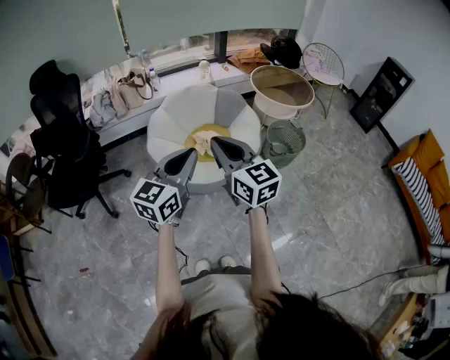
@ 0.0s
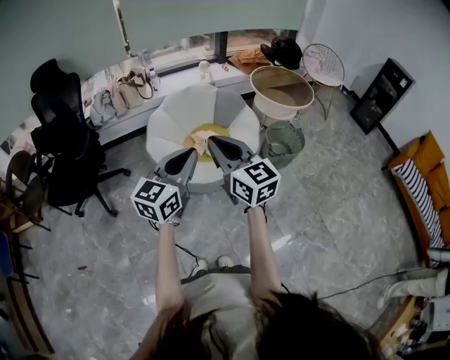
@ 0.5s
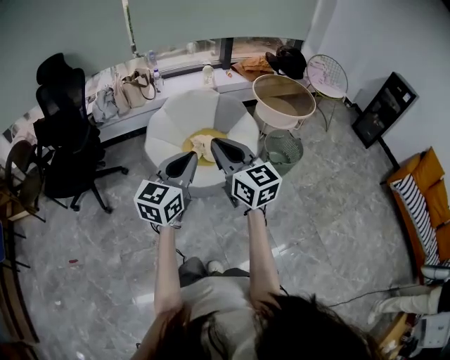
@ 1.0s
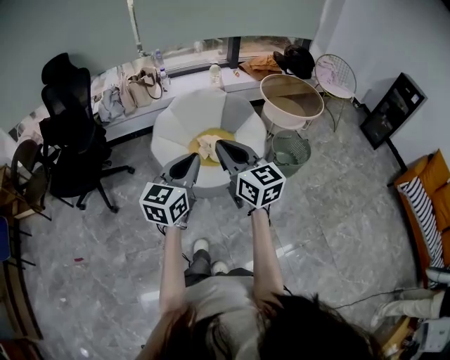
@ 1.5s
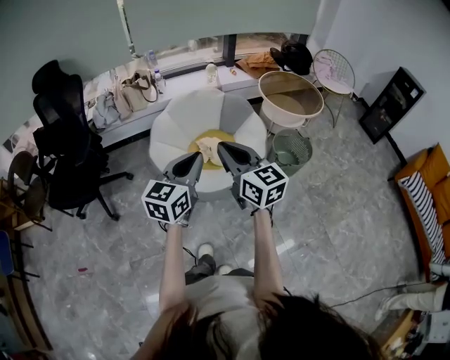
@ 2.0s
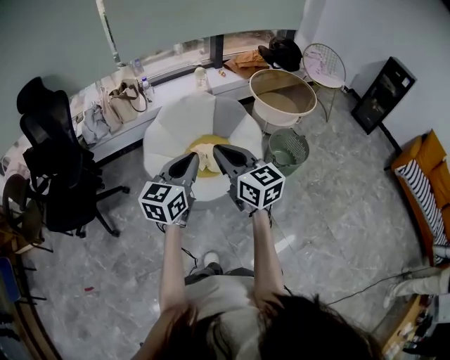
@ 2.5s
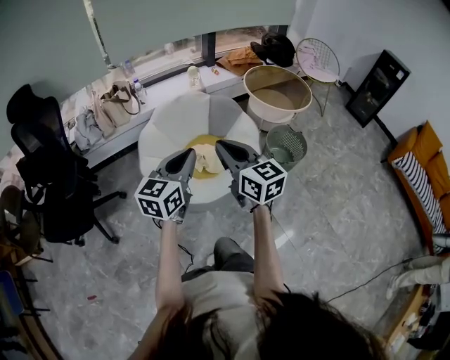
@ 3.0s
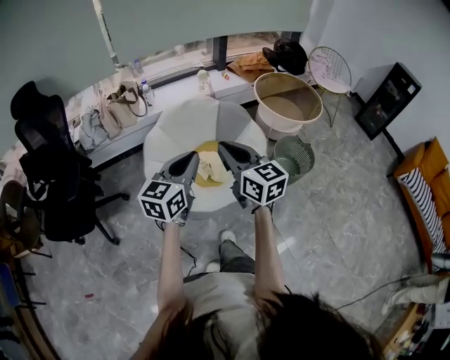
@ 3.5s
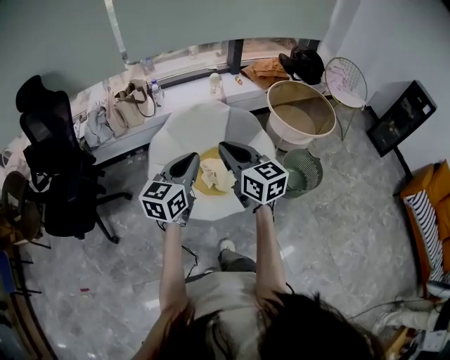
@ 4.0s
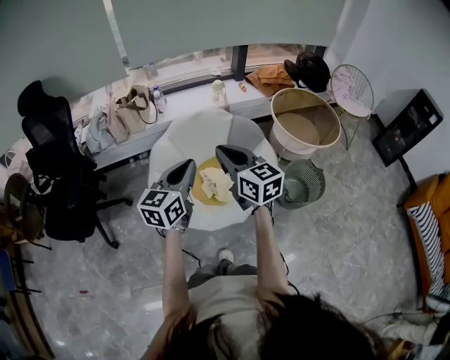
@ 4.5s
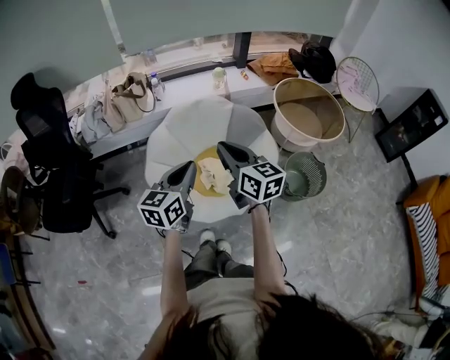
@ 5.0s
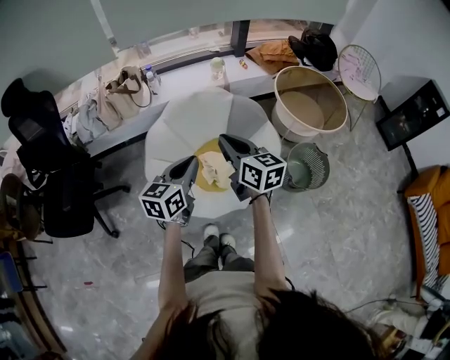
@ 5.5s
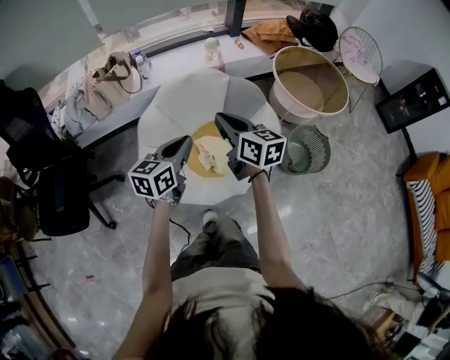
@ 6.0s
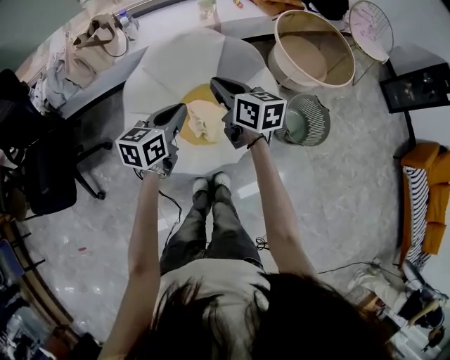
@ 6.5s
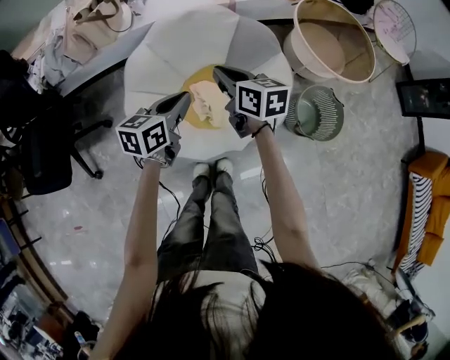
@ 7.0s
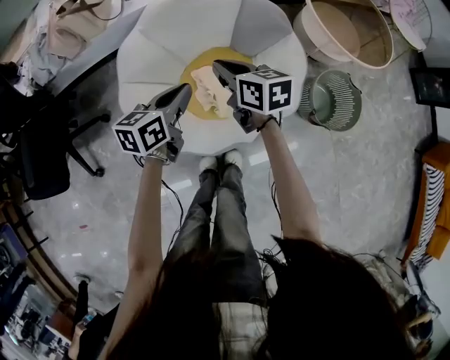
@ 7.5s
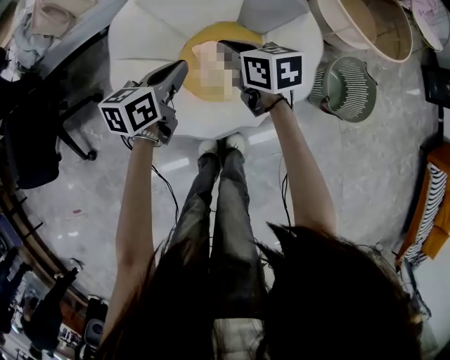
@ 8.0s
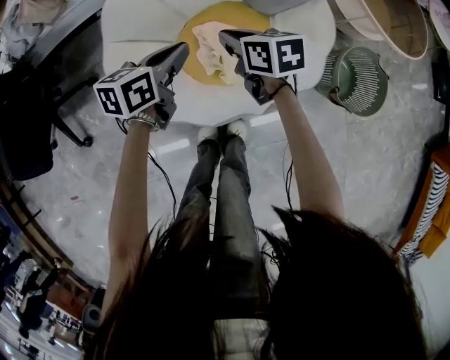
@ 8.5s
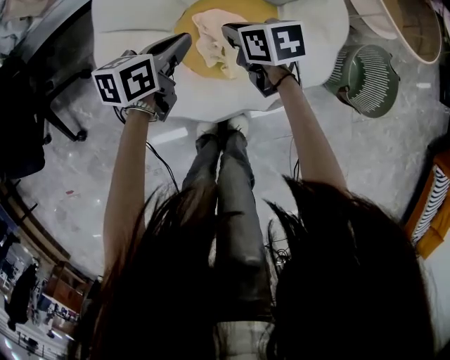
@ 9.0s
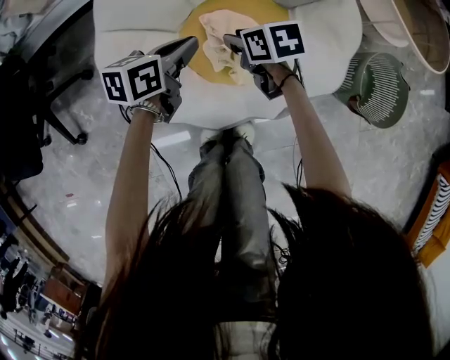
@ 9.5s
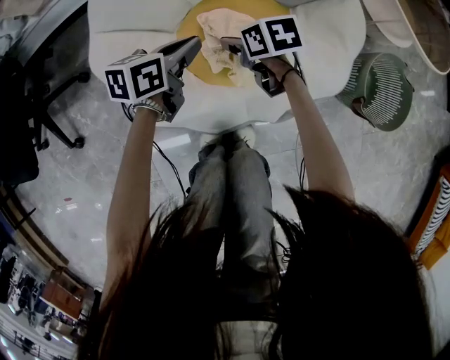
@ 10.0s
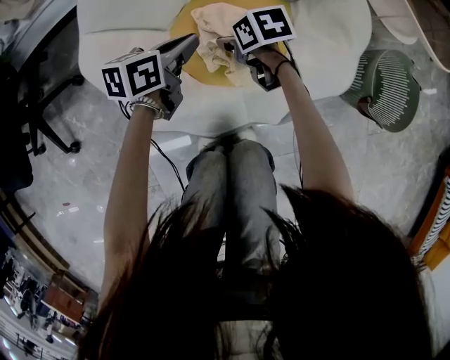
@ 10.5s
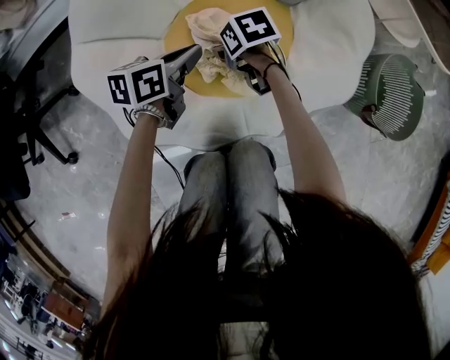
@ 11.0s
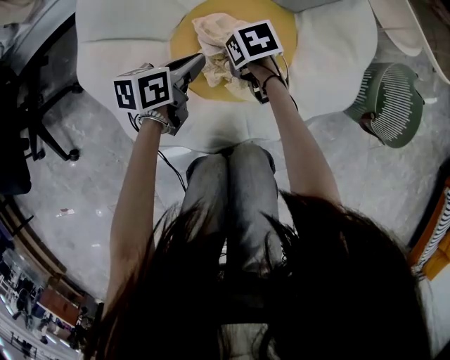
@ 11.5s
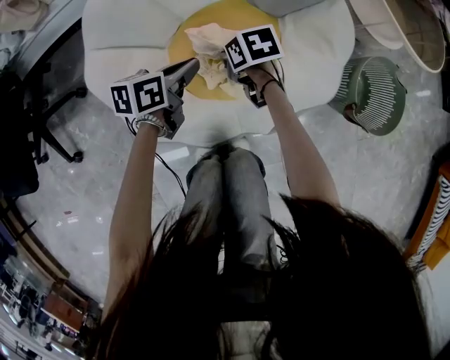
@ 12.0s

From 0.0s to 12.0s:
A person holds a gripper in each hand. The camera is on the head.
From 0.0s to 2.0s: Both grippers move forward, roughly 5 cm.
From 2.0s to 4.0s: Both grippers move forward, approximately 25 cm.
From 4.0s to 6.0s: Both grippers travel together forward and downward, some 20 cm.
From 6.0s to 8.0s: The grippers both shift downward by some 25 cm. The right gripper swivels roughly 30 degrees.
From 8.0s to 10.0s: Both grippers travel together downward, approximately 20 cm. The right gripper swivels roughly 20 degrees, and opens its fingers.
From 10.0s to 12.0s: The left gripper moves roughly 10 cm downward and comes back, while the right gripper travels downward and back again, approximately 10 cm each way, and closes.

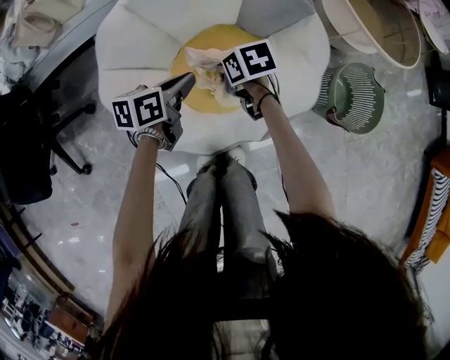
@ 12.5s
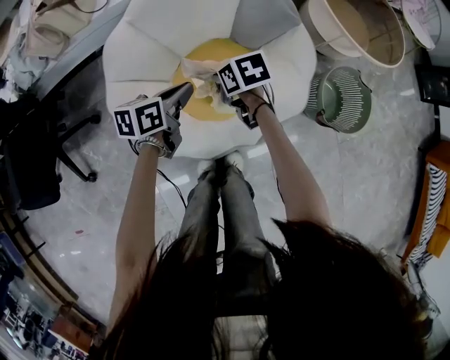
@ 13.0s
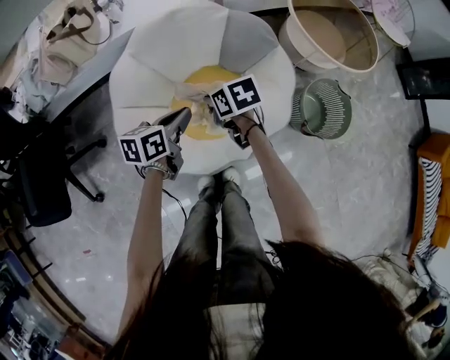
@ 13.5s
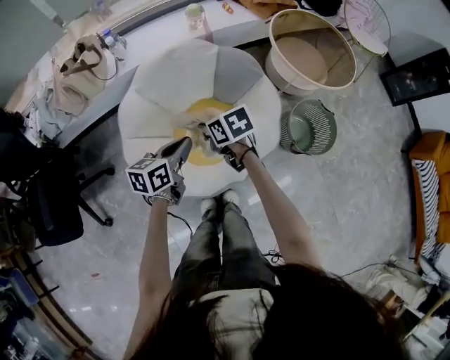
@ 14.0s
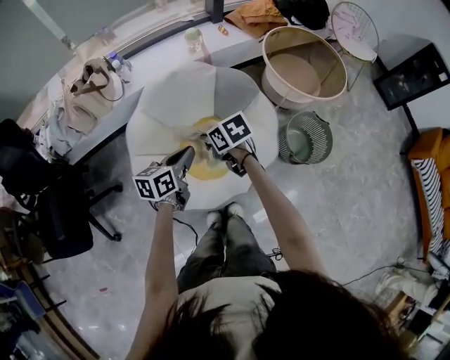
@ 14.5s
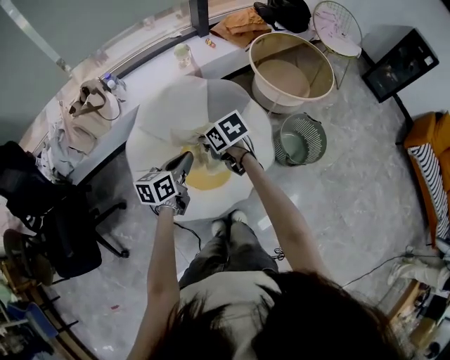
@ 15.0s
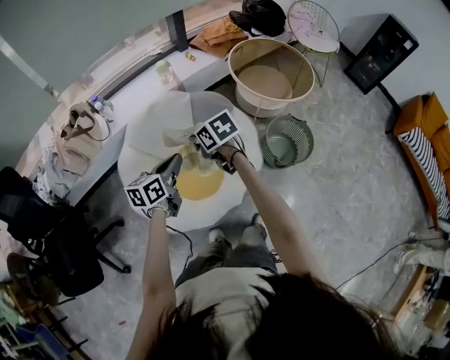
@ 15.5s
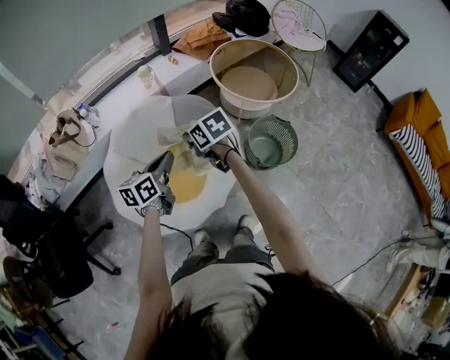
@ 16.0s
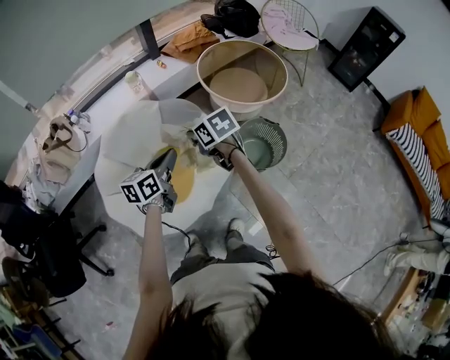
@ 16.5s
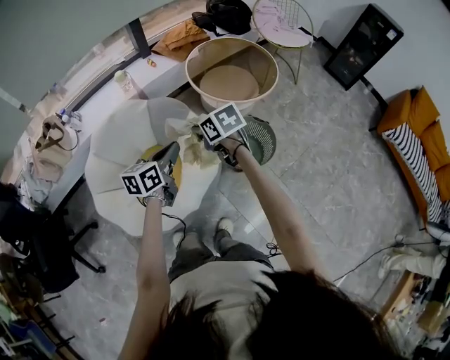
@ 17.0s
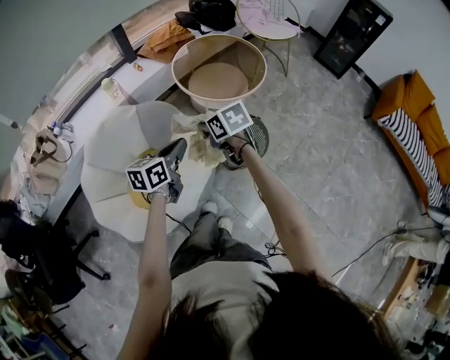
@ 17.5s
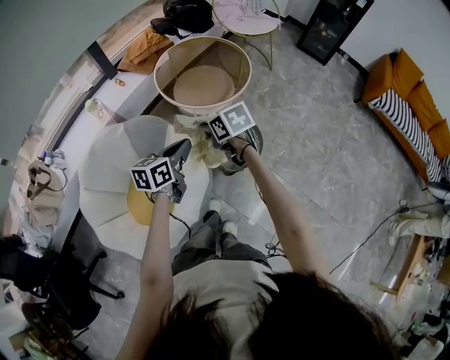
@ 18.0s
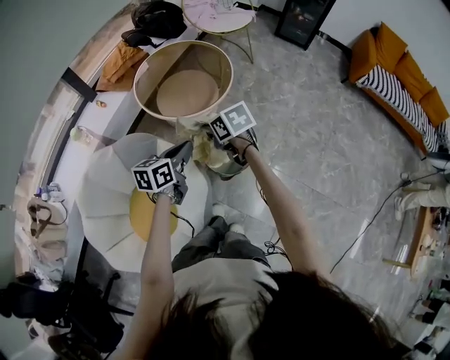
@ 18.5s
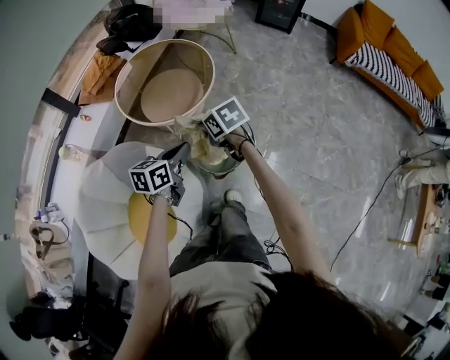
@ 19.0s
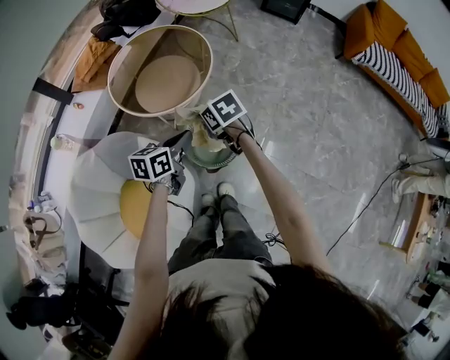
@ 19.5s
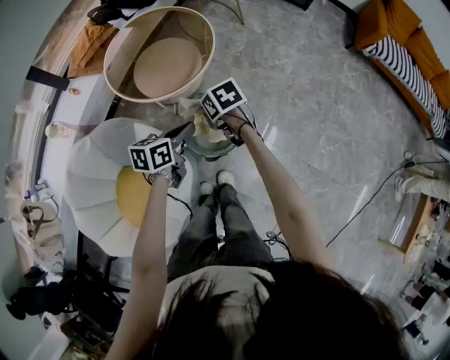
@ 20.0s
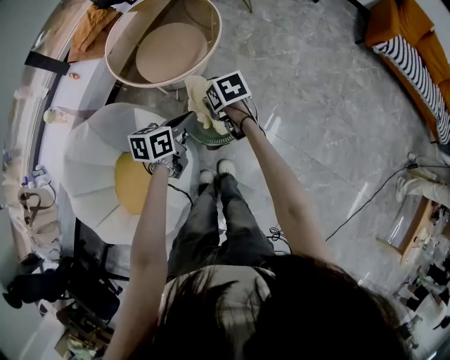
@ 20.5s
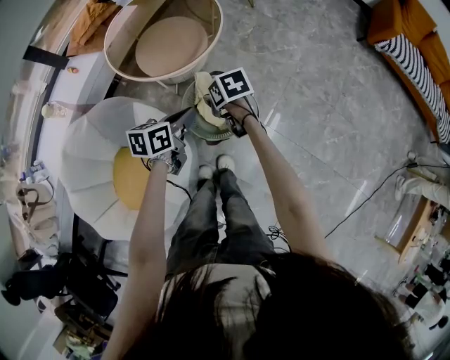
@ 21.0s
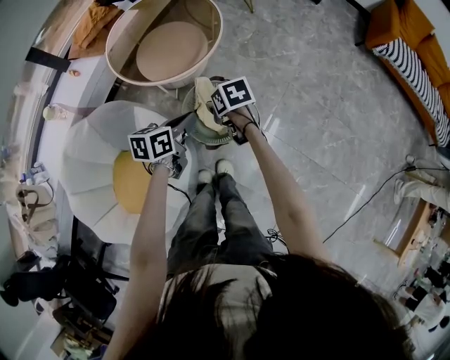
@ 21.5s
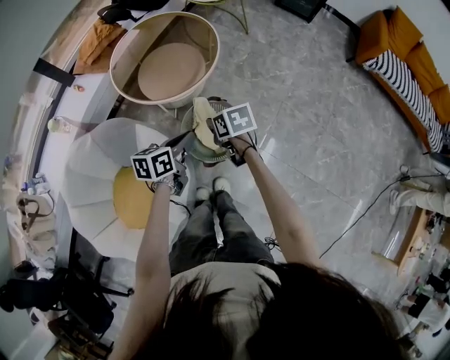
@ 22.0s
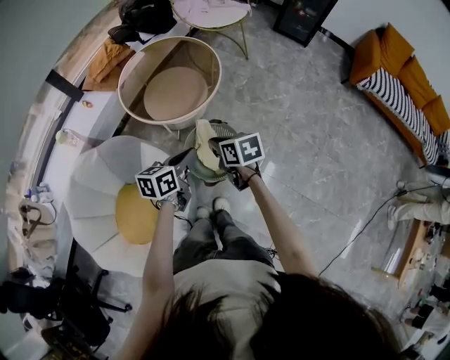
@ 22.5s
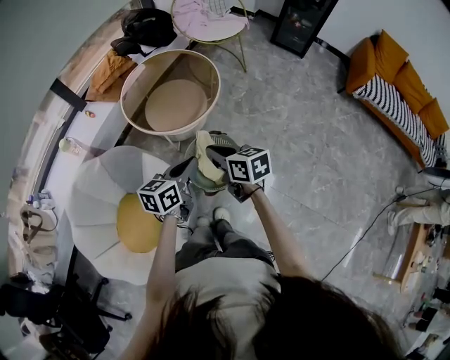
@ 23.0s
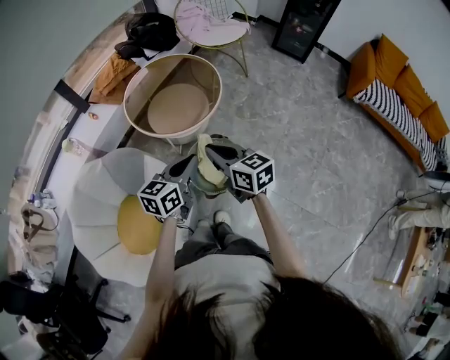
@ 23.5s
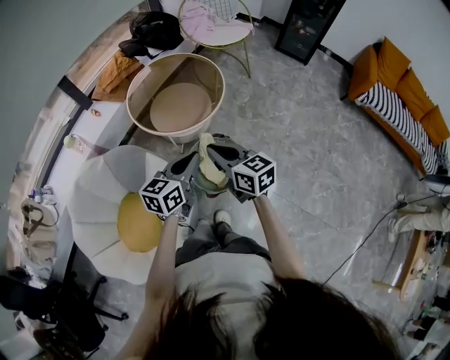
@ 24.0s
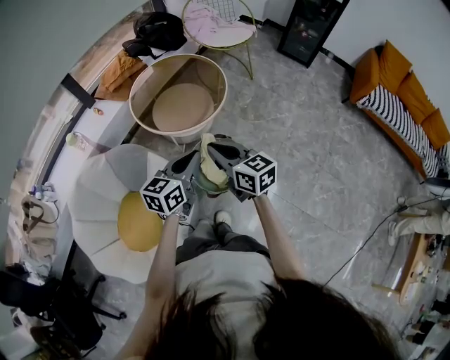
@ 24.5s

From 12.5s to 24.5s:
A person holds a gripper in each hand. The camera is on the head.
From 12.5s to 14.5s: The two grippers go approximately 30 cm upward.
From 14.5s to 16.5s: The right gripper moves to the right and upward, approximately 25 cm. The left gripper moves to the right, roughly 20 cm.
From 16.5s to 18.5s: The right gripper moves about 30 cm, and changes its angle by roughly 30 degrees, while the left gripper ends up about 30 cm from where it was, and turns by some 30 degrees.
From 18.5s to 20.5s: The right gripper moves downward and to the right, roughly 20 cm; the left gripper travels to the right, downward and forward by roughly 15 cm.
From 20.5s to 22.5s: The right gripper travels upward and backward by roughly 10 cm, while the left gripper goes approximately 5 cm upward.
From 22.5s to 24.5s: The grippers both shift upward by roughly 10 cm. The left gripper changes its angle by about 20 degrees; the right gripper rotates roughly 30 degrees.

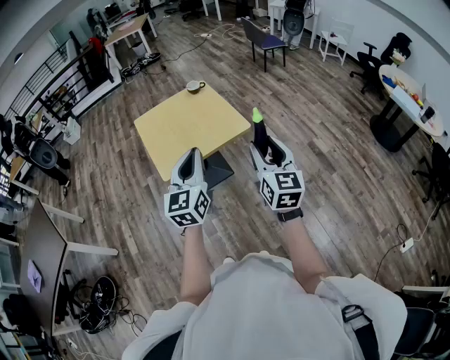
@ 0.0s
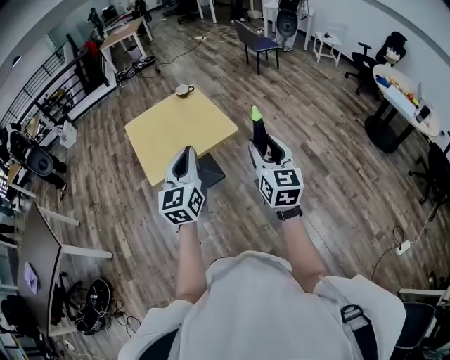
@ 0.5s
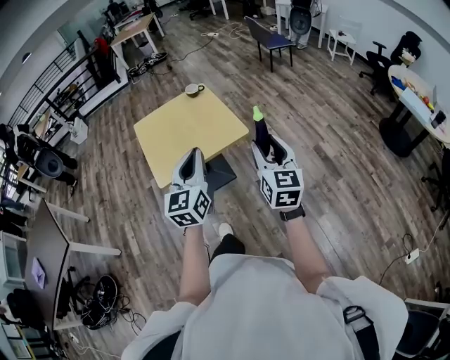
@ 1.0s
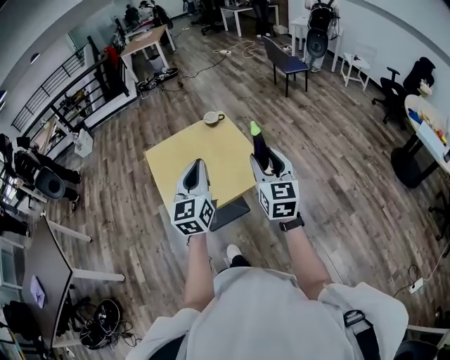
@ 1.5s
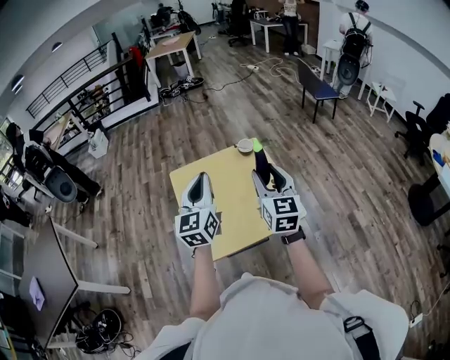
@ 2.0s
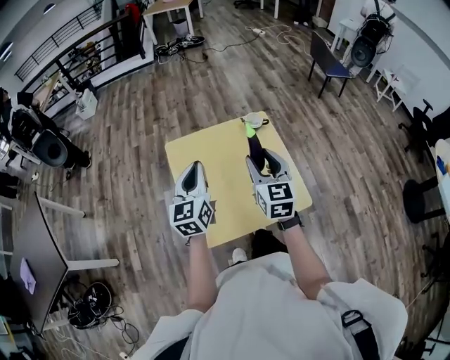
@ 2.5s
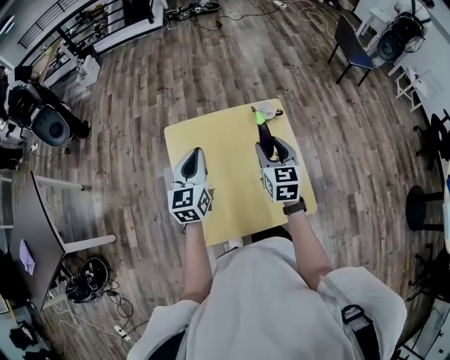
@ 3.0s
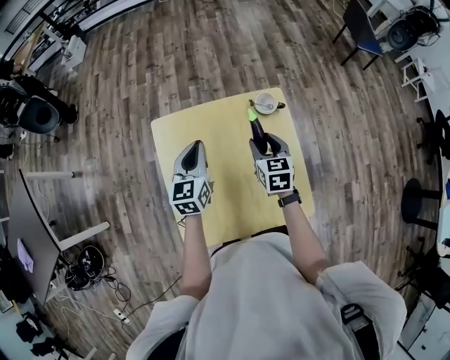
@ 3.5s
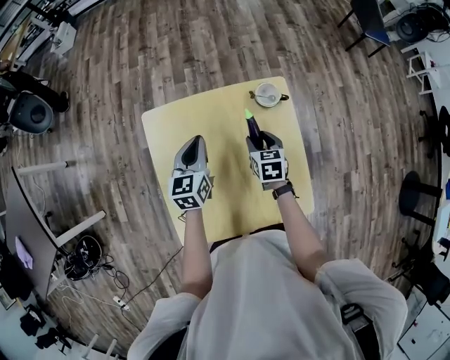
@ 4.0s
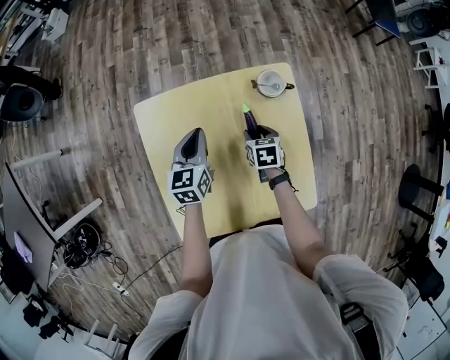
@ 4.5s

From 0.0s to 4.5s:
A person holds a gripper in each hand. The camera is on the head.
From 0.0s to 2.0s: Both grippers move forward and to the left, about 40 cm.
From 2.0s to 4.5s: Both grippers travel together downward and forward, roughly 50 cm. The right gripper tilts its fingers approximately 60 degrees downward. Meanwhile the left gripper tips its fingers downward by some 30 degrees.
